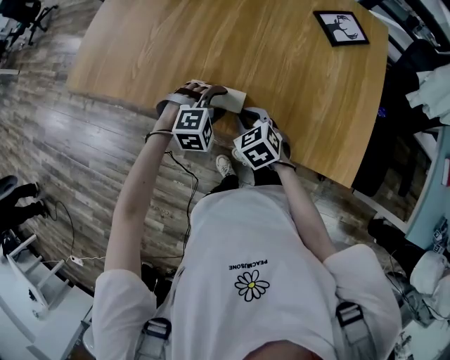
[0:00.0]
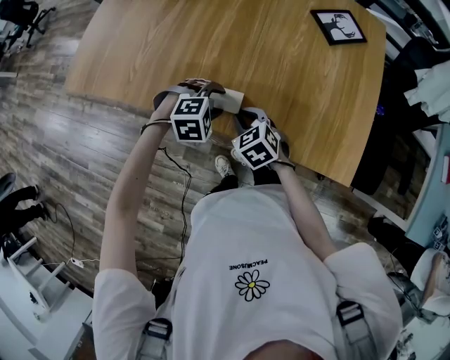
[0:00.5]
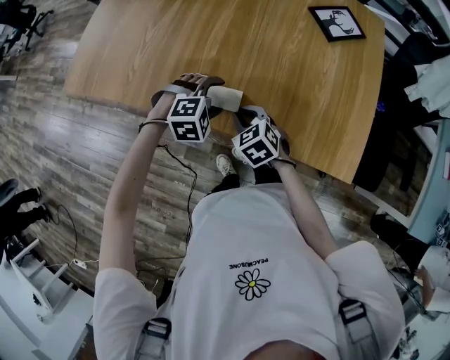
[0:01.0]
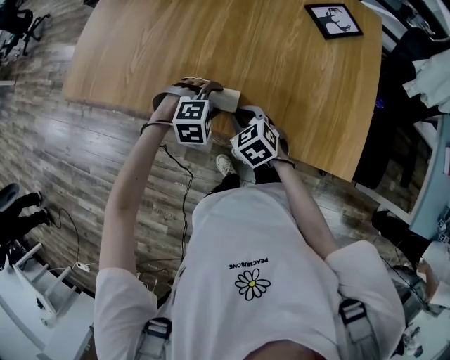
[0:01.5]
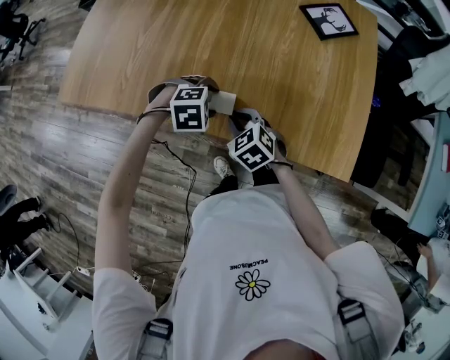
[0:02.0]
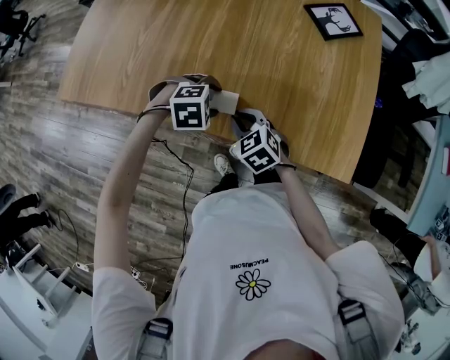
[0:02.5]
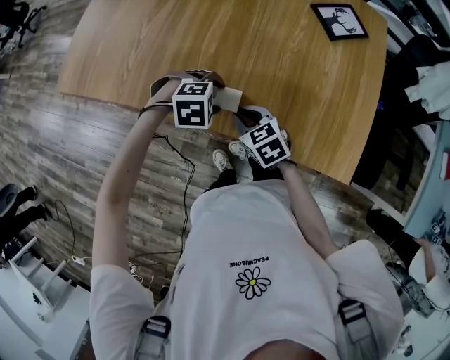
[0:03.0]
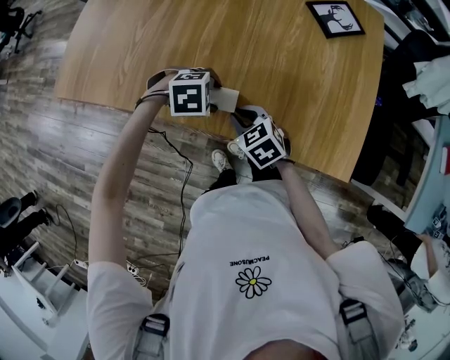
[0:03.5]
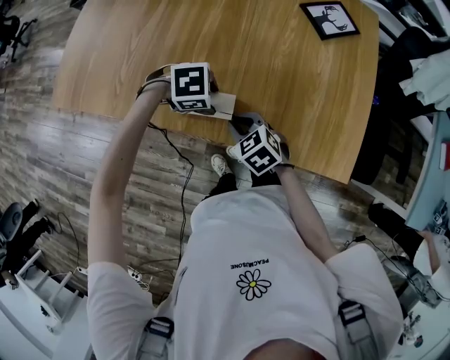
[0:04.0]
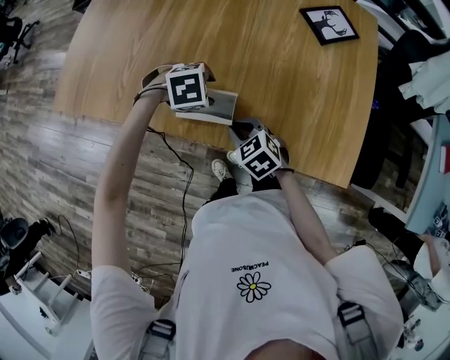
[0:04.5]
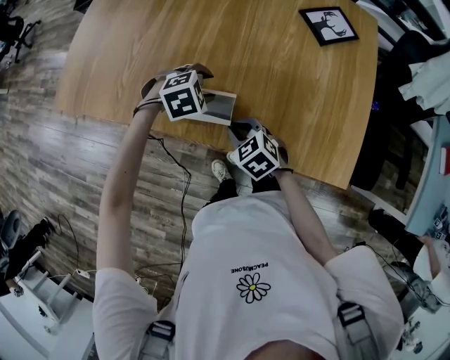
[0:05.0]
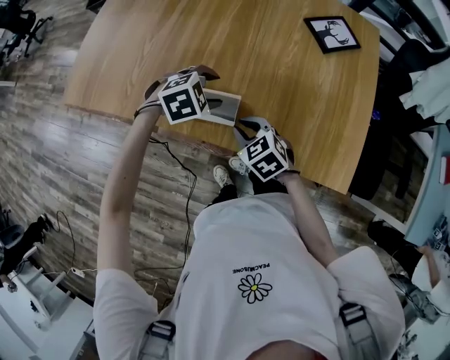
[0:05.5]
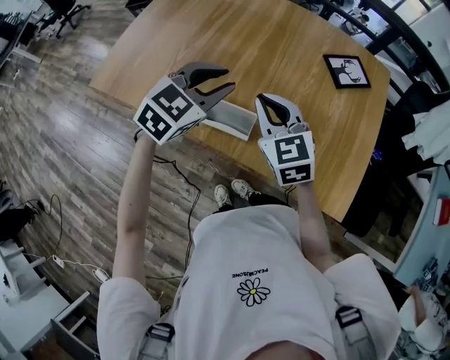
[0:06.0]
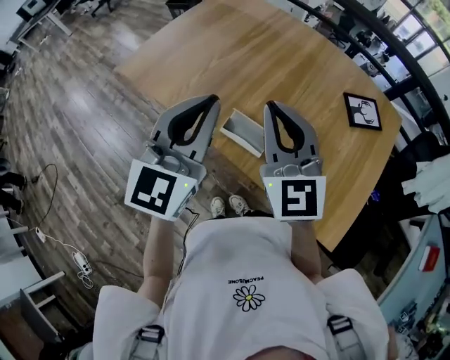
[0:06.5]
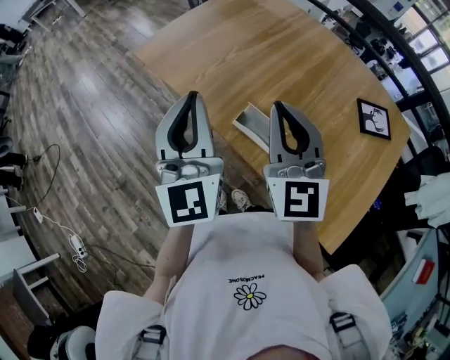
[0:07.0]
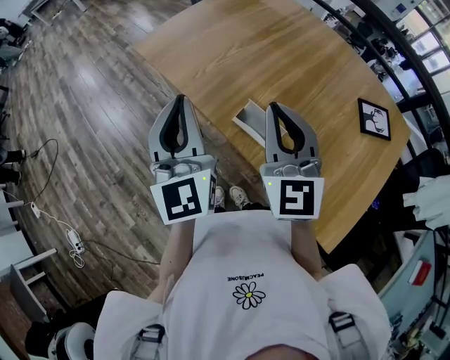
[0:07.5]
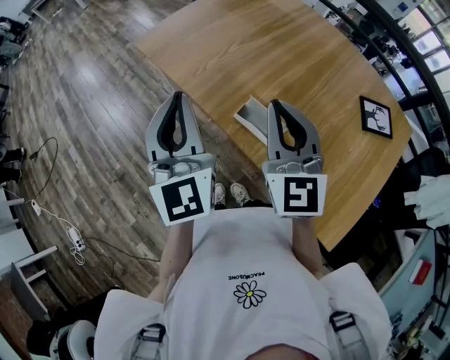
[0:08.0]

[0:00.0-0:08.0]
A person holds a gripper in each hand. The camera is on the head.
0:00.0 to 0:02.0: The left gripper turns by some 20 degrees.
0:02.0 to 0:04.0: The left gripper changes its angle by about 20 degrees.
0:04.0 to 0:06.0: The grippers both shift upward by approximately 20 cm. The right gripper points its fingers about 30 degrees further upward, while the left gripper tips its fingers upward by approximately 30 degrees, and closes.
0:06.0 to 0:08.0: The right gripper moves upward, approximately 10 cm, and rotates about 20 degrees. The left gripper ends up approximately 25 cm from where it was, angles its fingers upward, by about 40 degrees, and closes up.

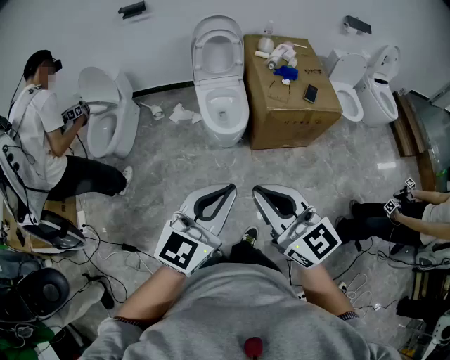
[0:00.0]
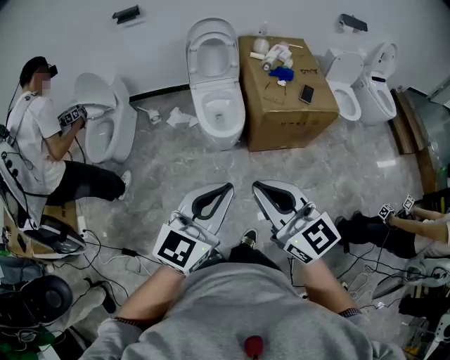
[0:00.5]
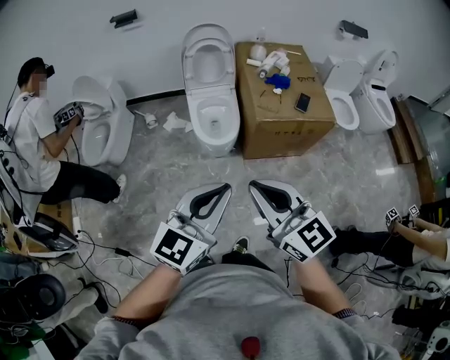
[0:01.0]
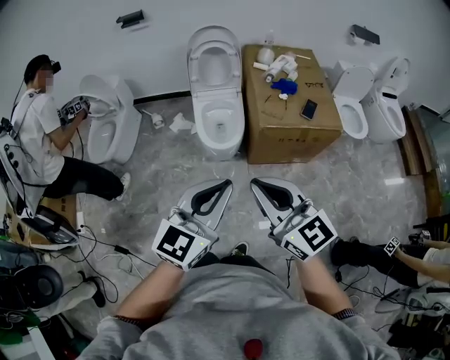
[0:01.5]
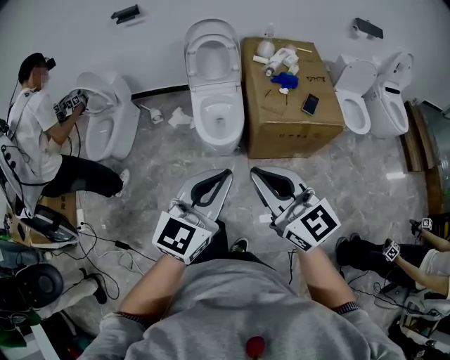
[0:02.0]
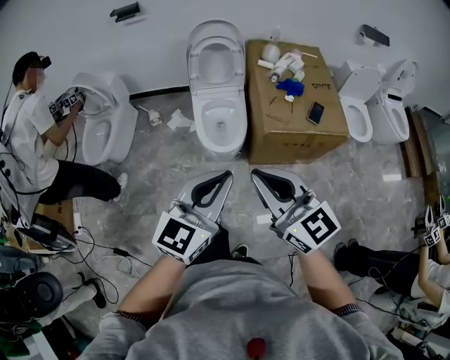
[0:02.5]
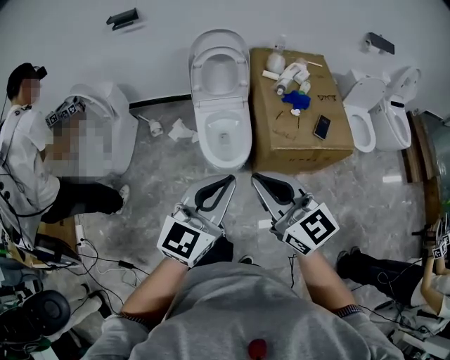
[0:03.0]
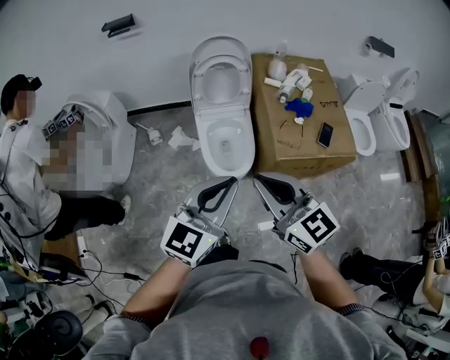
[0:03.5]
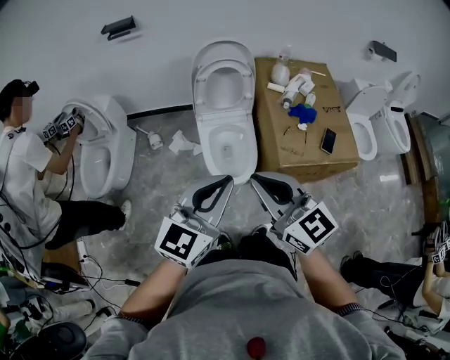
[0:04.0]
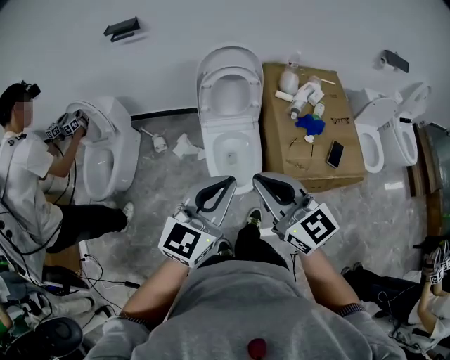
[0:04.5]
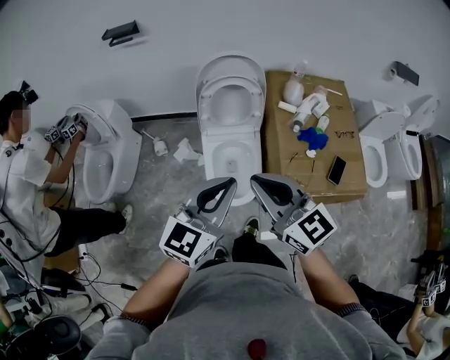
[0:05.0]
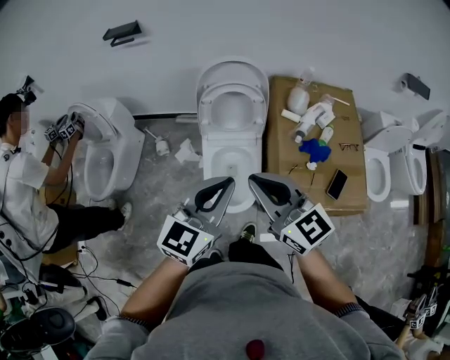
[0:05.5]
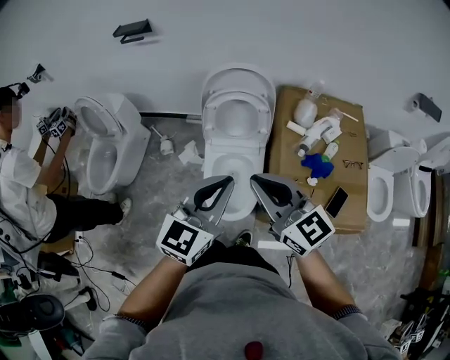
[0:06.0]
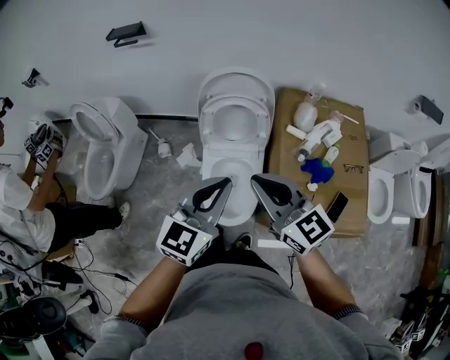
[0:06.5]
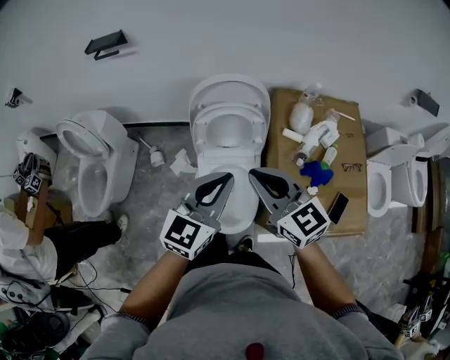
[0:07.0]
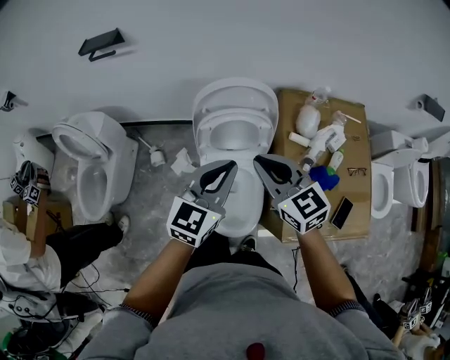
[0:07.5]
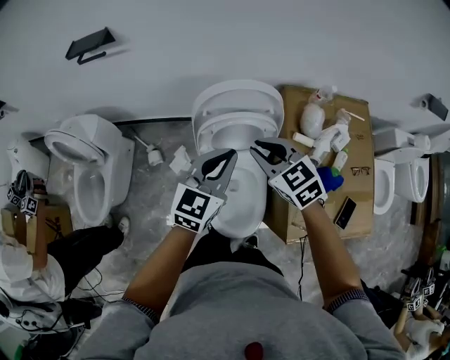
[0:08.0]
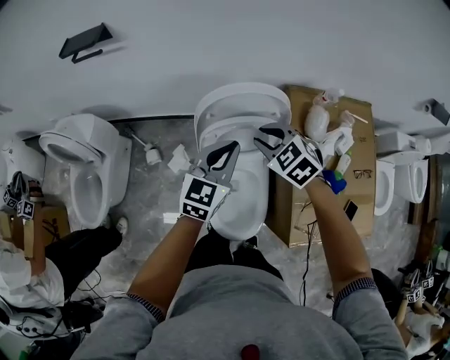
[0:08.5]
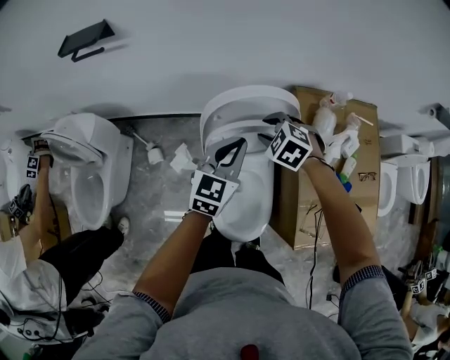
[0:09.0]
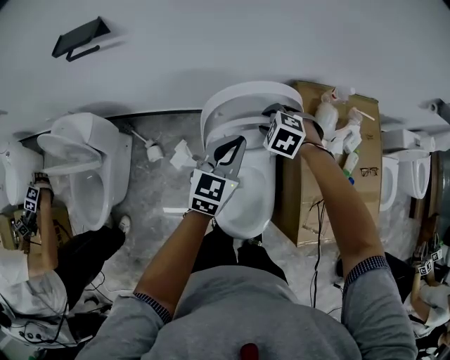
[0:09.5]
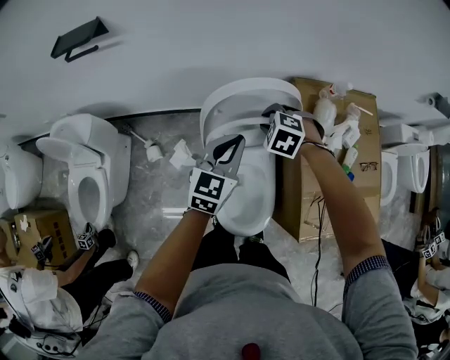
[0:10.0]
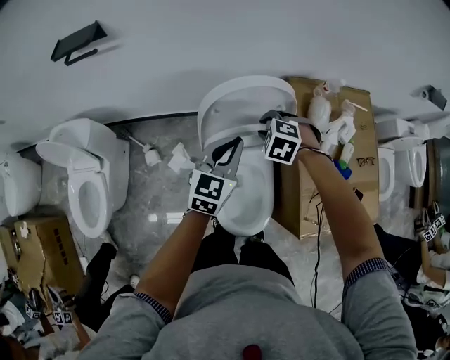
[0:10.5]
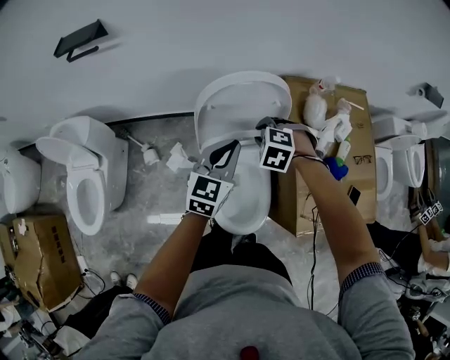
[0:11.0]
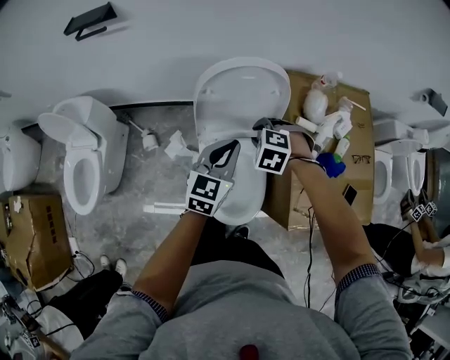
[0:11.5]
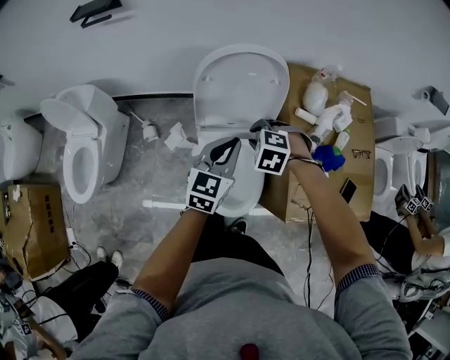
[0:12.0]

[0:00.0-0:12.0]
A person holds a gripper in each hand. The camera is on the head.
0:00.0 to 0:02.0: The two grippers go approximately 15 cm forward and to the right.
0:02.0 to 0:04.0: The two grippers go approximately 30 cm forward and to the left.
0:04.0 to 0:06.0: The grippers both shift forward and to the right by roughly 25 cm.
0:06.0 to 0:08.0: The right gripper goes approximately 30 cm forward and downward, and angles its fingers downward, by roughly 30 degrees, while the left gripper is displaced forward by roughly 30 cm.
0:08.0 to 0:10.0: The left gripper travels downward and forward by roughly 10 cm; the right gripper is displaced downward and forward by some 20 cm, and tips its fingers downward by roughly 40 degrees.
0:10.0 to 0:12.0: The two grippers go approximately 15 cm backward.

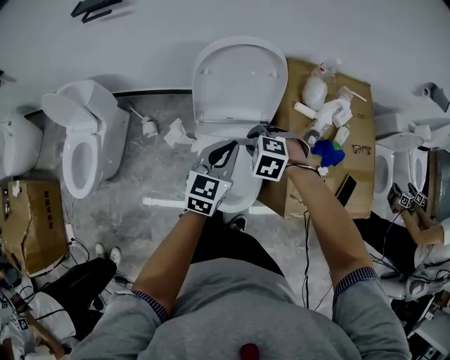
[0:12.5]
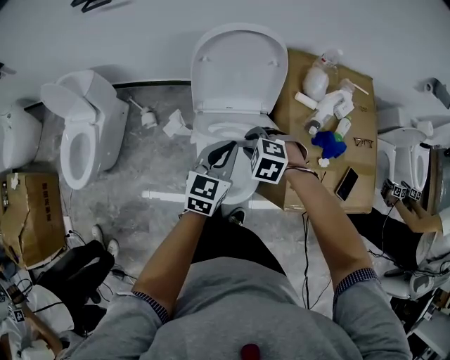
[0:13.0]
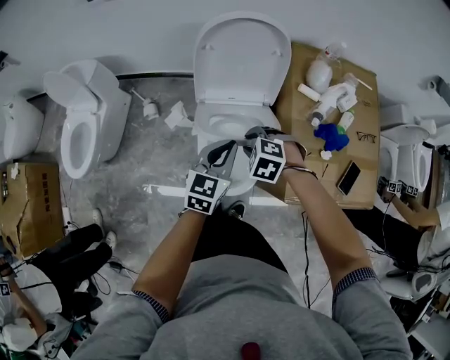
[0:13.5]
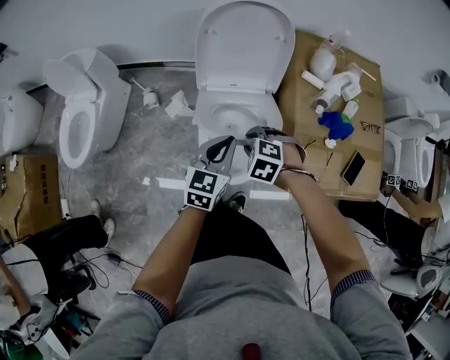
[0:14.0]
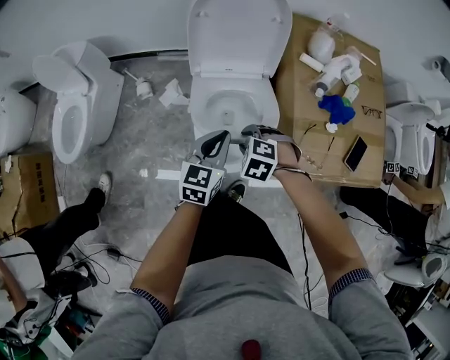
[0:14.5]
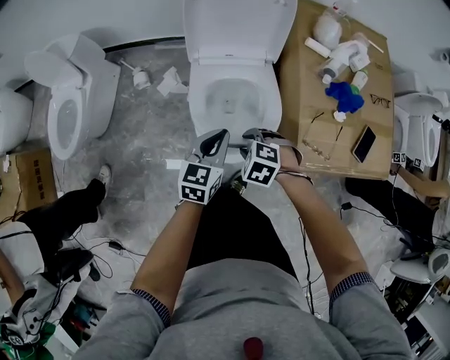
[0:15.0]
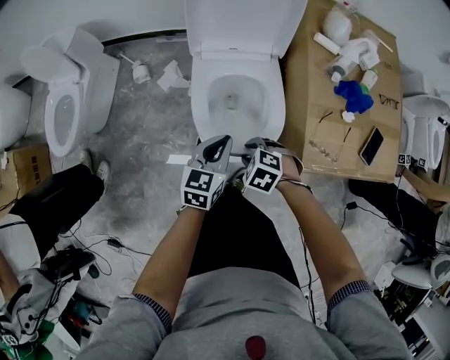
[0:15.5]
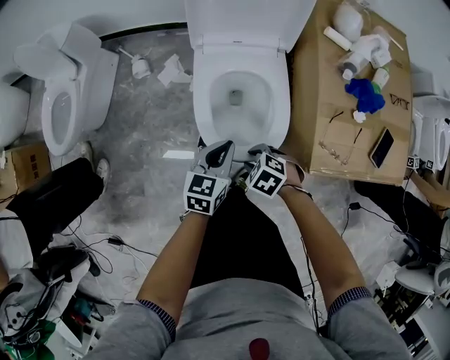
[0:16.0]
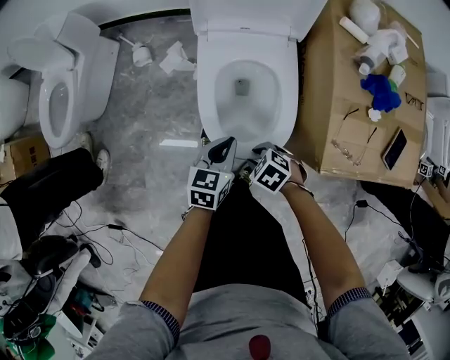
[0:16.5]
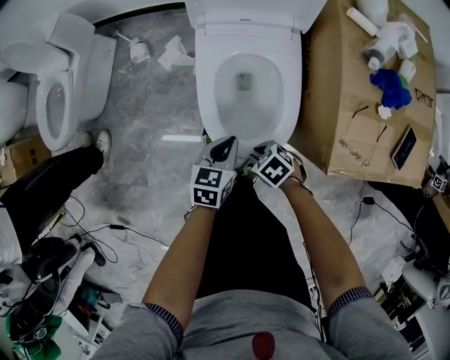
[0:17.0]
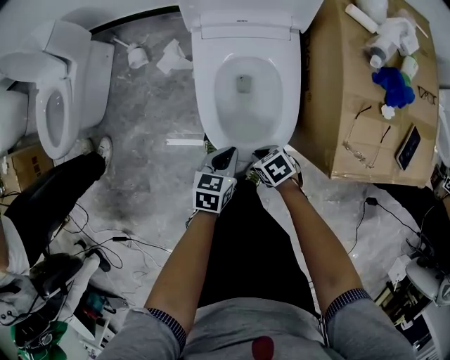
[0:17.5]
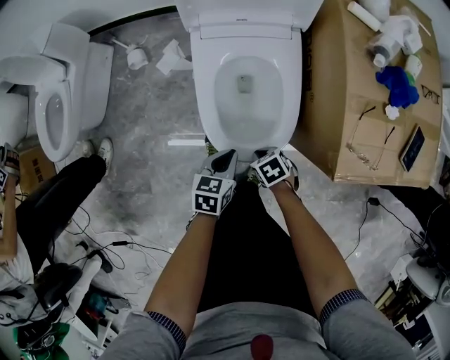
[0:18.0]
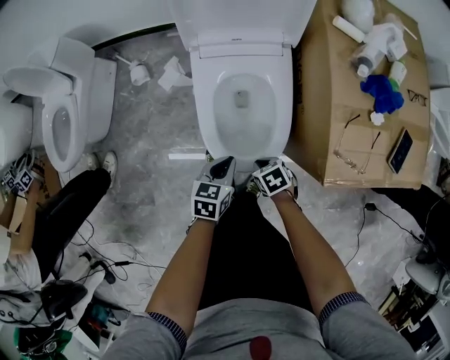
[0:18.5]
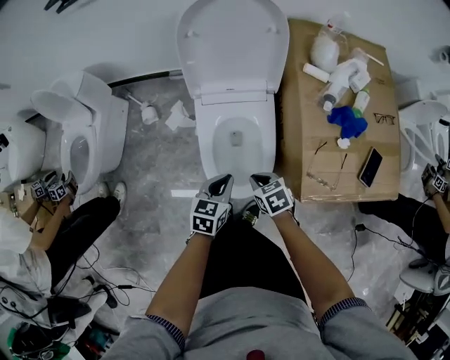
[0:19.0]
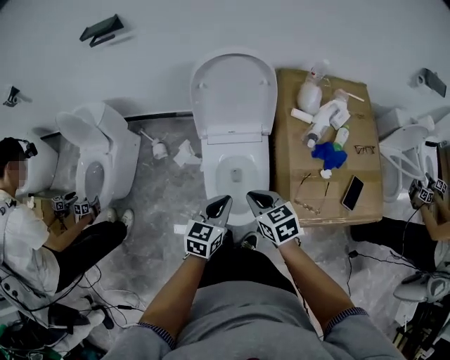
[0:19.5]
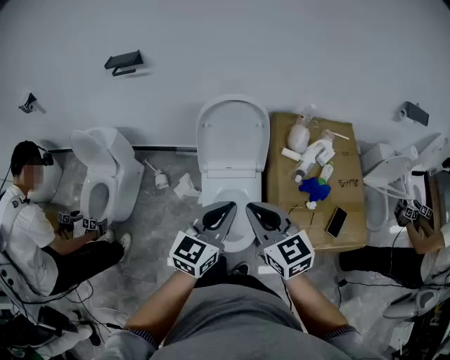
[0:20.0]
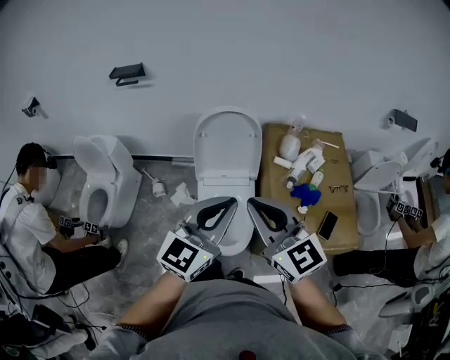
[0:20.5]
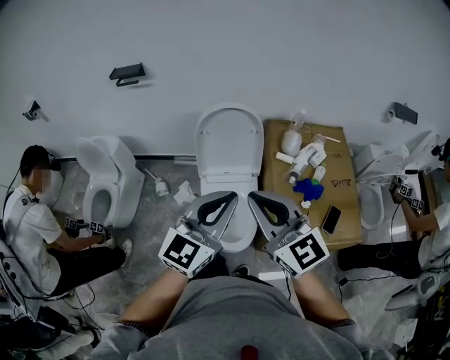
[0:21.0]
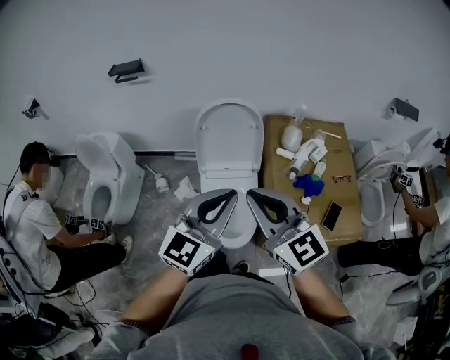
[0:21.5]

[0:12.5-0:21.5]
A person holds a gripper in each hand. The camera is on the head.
0:12.5 to 0:14.5: Both grippers move backward and downward, approximately 20 cm.
0:14.5 to 0:17.0: Both grippers travel together downward, roughly 25 cm. The right gripper rotates approximately 40 degrees. Meanwhile the left gripper swivels some 20 degrees.
0:17.0 to 0:19.5: Both grippers travel together upward, some 30 cm. The right gripper rotates approximately 40 degrees.
0:19.5 to 0:21.5: The grippers both shift upward by approximately 35 cm. The right gripper angles its fingers upward, by about 40 degrees. The left gripper changes its angle by some 30 degrees.
